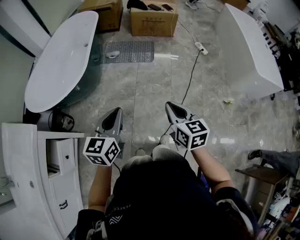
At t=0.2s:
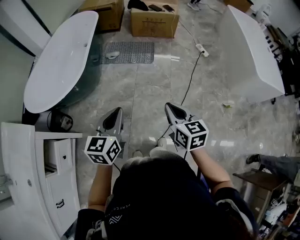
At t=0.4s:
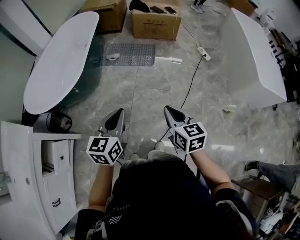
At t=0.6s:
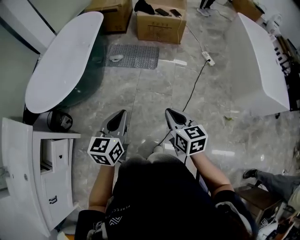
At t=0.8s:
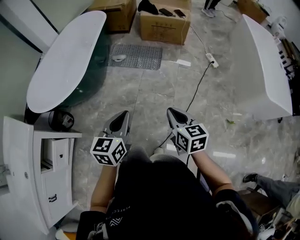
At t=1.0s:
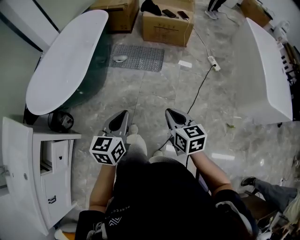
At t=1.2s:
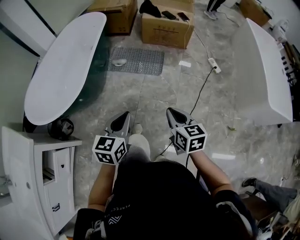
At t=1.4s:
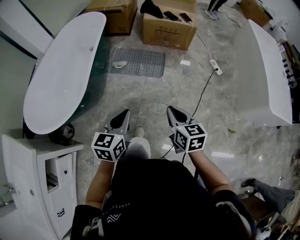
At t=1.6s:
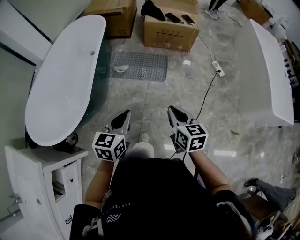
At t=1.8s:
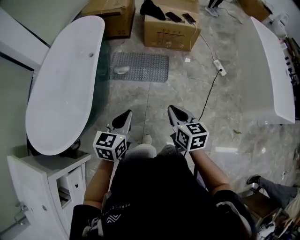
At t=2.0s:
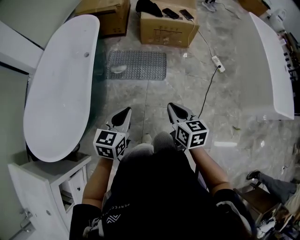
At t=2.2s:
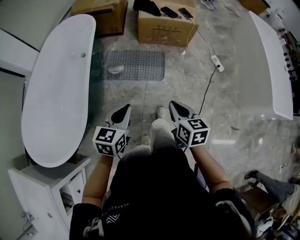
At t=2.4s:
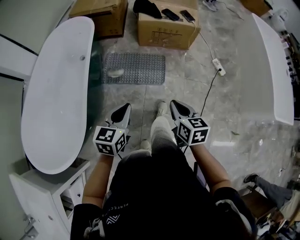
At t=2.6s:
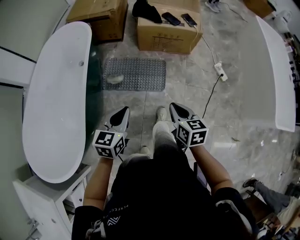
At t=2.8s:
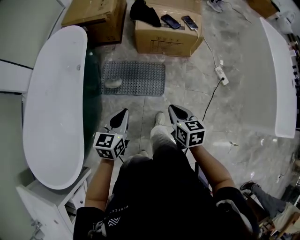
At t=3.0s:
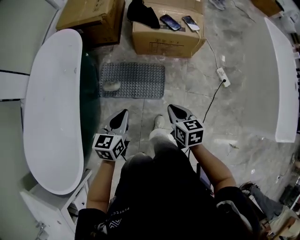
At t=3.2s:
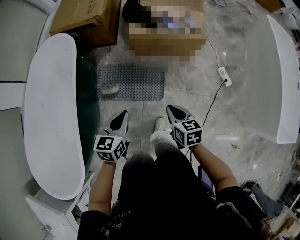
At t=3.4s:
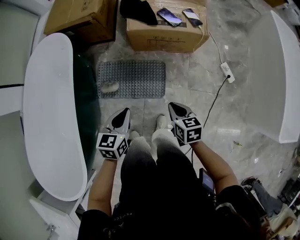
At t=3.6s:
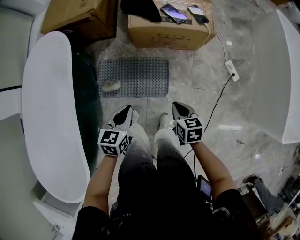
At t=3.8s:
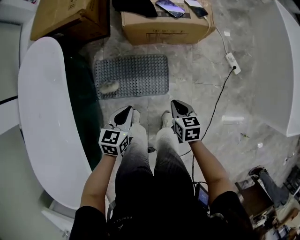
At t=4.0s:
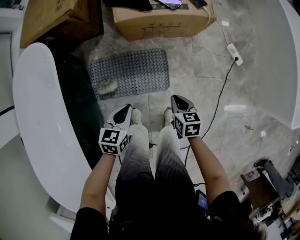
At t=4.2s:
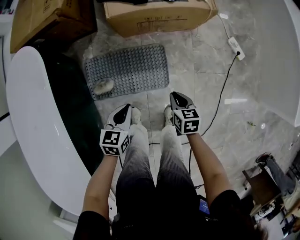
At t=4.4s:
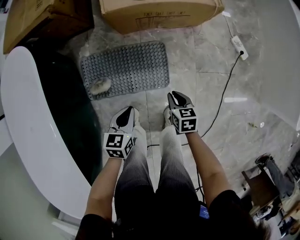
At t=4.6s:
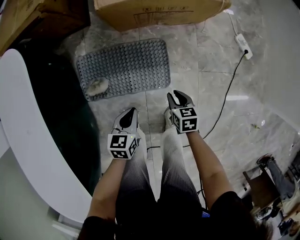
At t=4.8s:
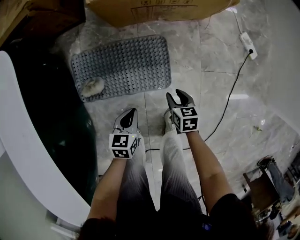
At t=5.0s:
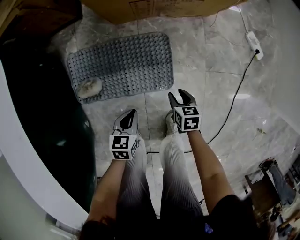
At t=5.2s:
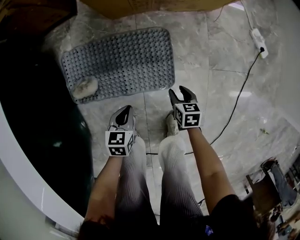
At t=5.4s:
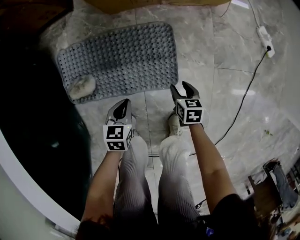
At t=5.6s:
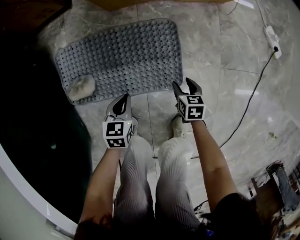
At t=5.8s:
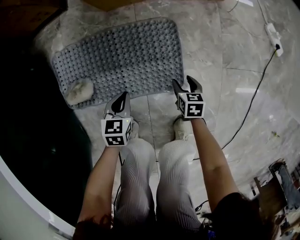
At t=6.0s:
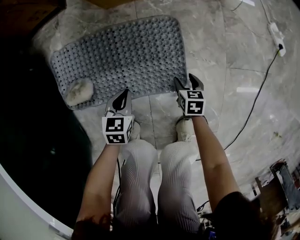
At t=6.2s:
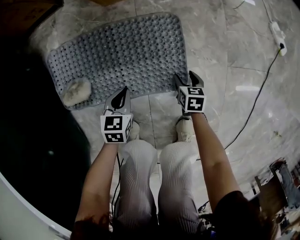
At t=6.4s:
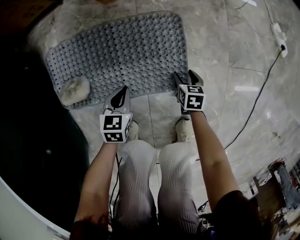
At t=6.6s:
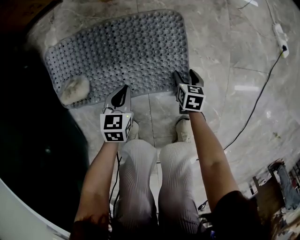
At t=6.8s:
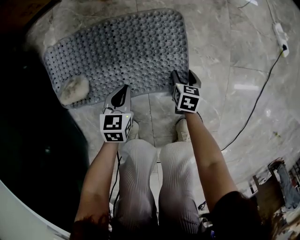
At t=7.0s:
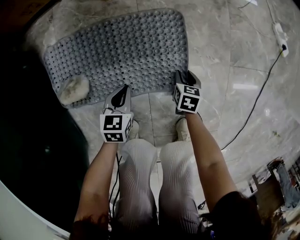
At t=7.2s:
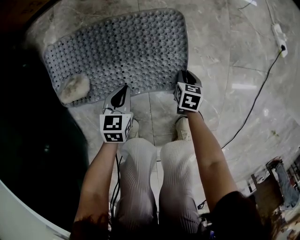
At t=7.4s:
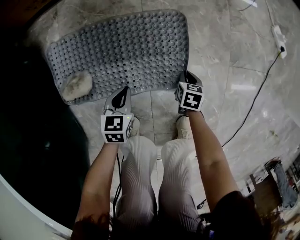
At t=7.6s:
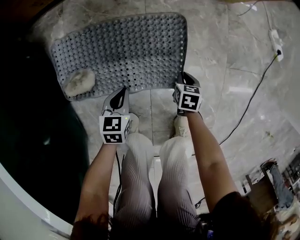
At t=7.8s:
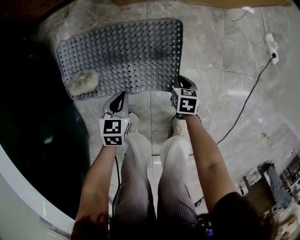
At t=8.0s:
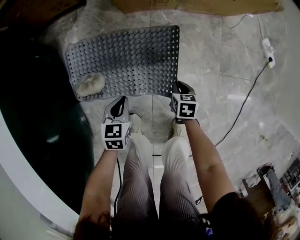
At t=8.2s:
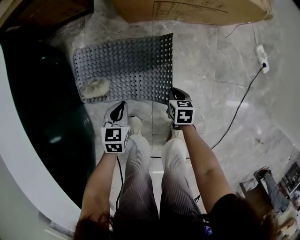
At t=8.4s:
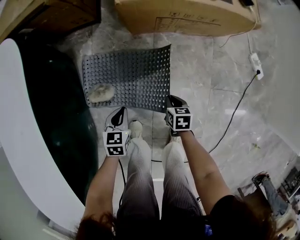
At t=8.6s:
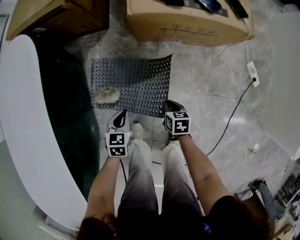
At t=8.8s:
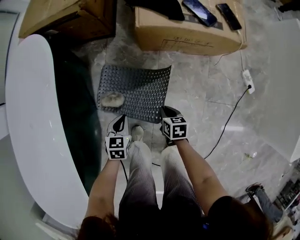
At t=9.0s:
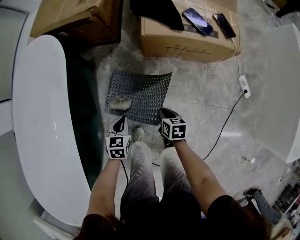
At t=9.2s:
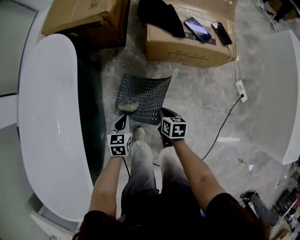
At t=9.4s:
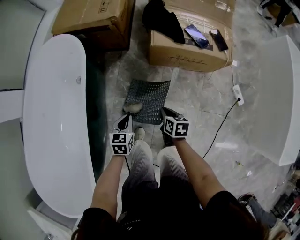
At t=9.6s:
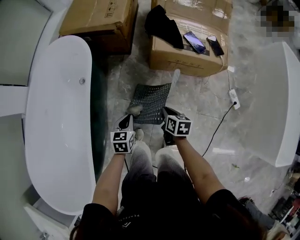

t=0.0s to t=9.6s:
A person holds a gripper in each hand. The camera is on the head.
t=0.0s to t=1.6s: Both grippers travel together forward, about 30 cm.
t=1.6s to t=3.2s: Both grippers are carried forward, roughly 40 cm.
t=3.2s to t=4.8s: The two grippers go some 40 cm downward. The left gripper changes its angle by approximately 20 degrees. The right gripper opens its fingers.
t=4.8s to t=6.4s: The two grippers go roughly 25 cm downward. The right gripper opens.
t=6.4s to t=8.0s: The left gripper goes about 10 cm upward, while the right gripper travels upward and to the left by about 15 cm, and closes its fingers.
t=8.0s to t=9.6s: Both grippers travel together upward, roughly 40 cm. The right gripper turns by about 20 degrees.

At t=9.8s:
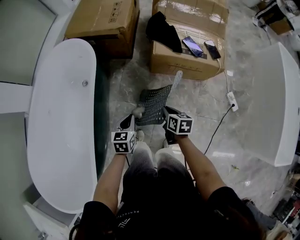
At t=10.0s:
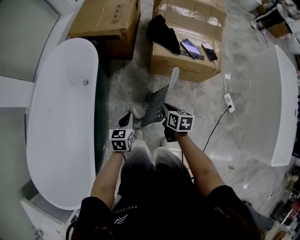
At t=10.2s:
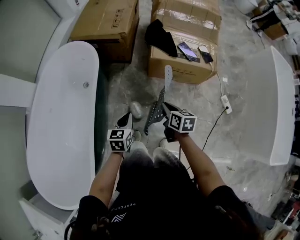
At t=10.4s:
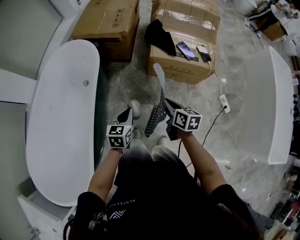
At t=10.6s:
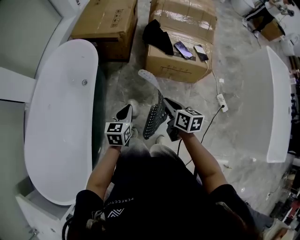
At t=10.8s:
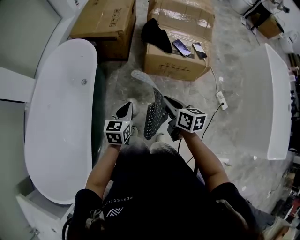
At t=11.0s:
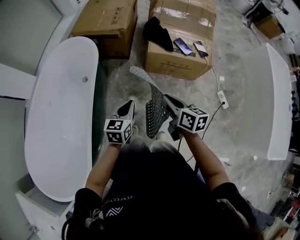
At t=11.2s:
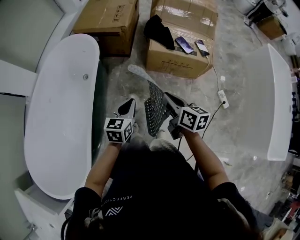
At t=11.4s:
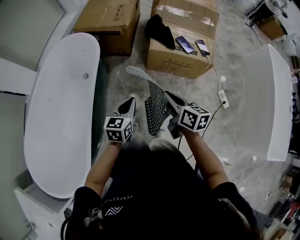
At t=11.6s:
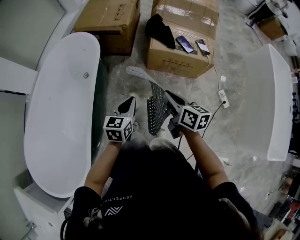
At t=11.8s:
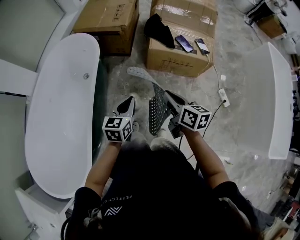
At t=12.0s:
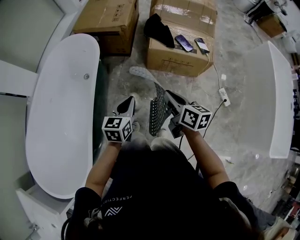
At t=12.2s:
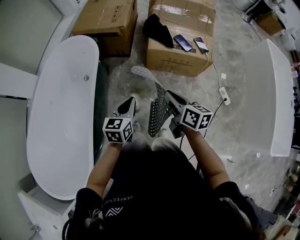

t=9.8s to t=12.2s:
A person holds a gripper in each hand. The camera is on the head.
t=9.8s to t=11.0s: The two grippers go roughly 20 cm upward. The right gripper turns by roughly 20 degrees.
t=11.0s to t=12.2s: There are only small adjustments of the grippers.

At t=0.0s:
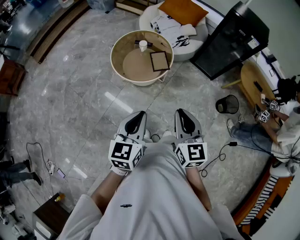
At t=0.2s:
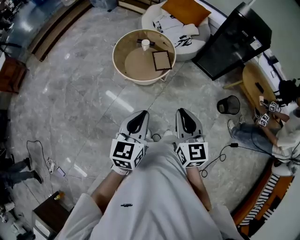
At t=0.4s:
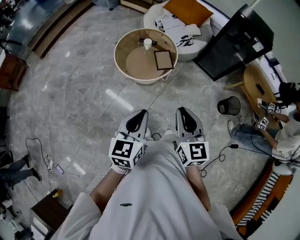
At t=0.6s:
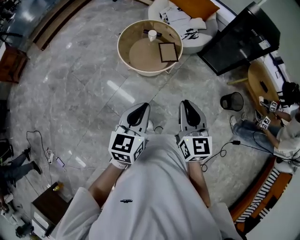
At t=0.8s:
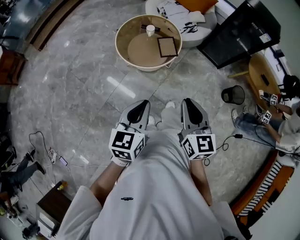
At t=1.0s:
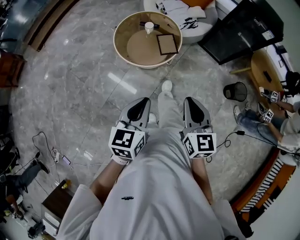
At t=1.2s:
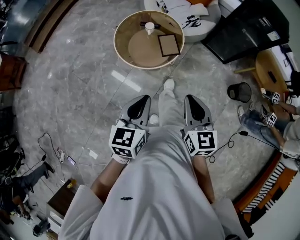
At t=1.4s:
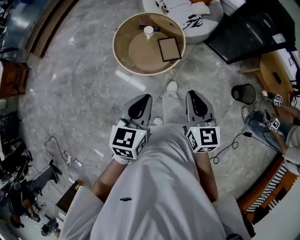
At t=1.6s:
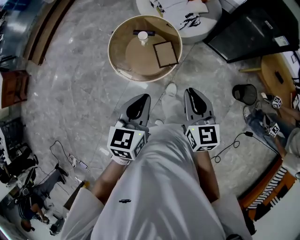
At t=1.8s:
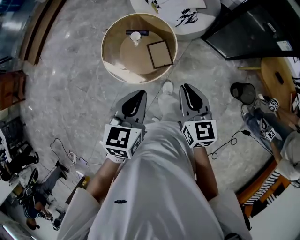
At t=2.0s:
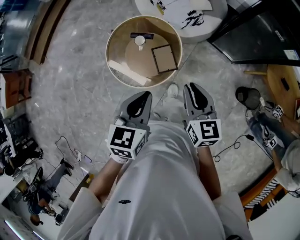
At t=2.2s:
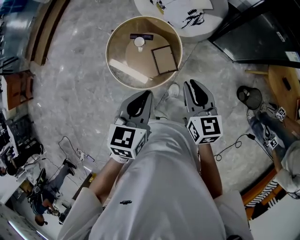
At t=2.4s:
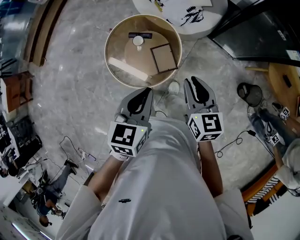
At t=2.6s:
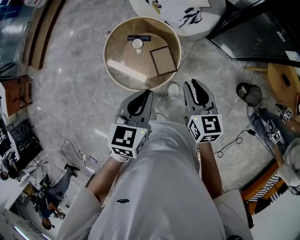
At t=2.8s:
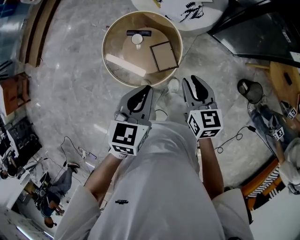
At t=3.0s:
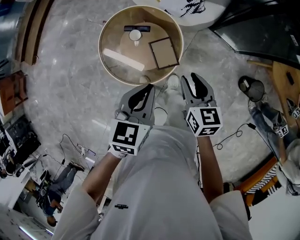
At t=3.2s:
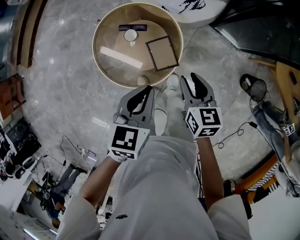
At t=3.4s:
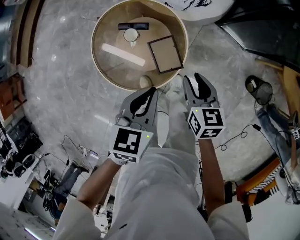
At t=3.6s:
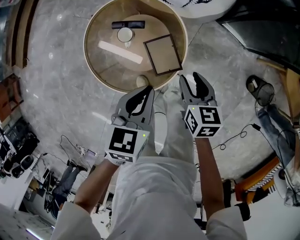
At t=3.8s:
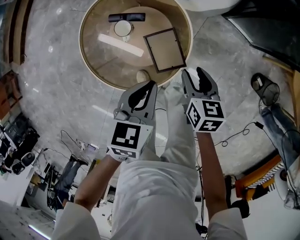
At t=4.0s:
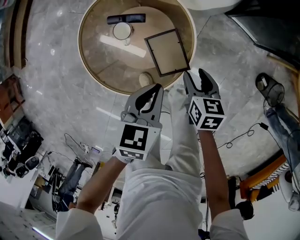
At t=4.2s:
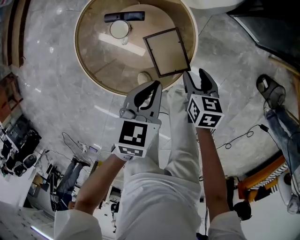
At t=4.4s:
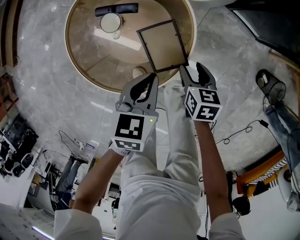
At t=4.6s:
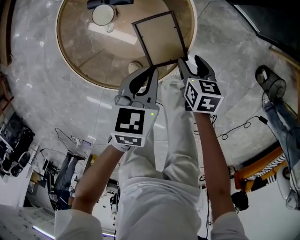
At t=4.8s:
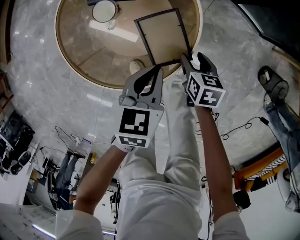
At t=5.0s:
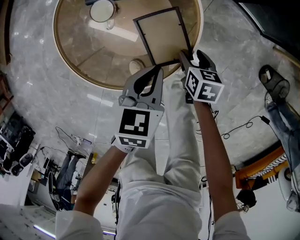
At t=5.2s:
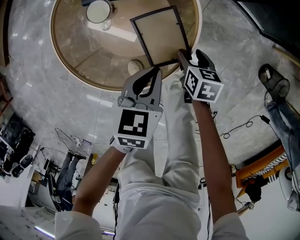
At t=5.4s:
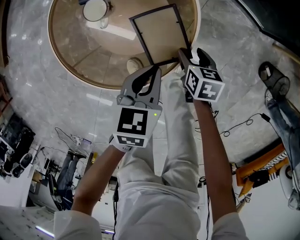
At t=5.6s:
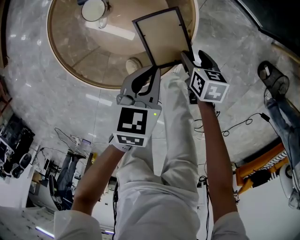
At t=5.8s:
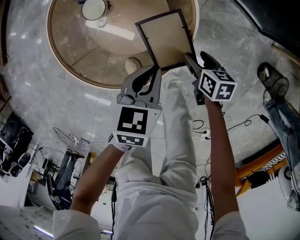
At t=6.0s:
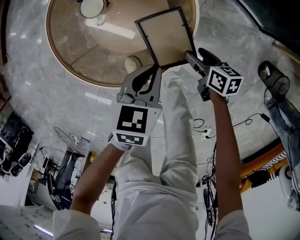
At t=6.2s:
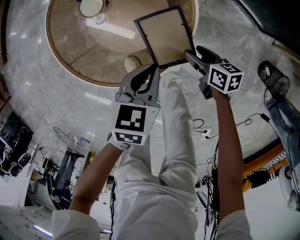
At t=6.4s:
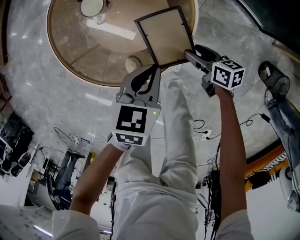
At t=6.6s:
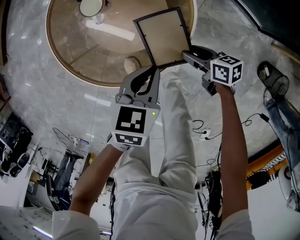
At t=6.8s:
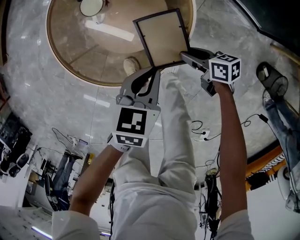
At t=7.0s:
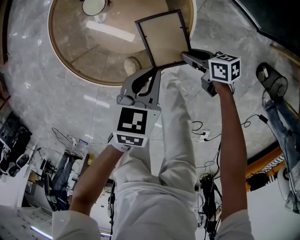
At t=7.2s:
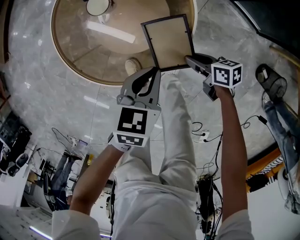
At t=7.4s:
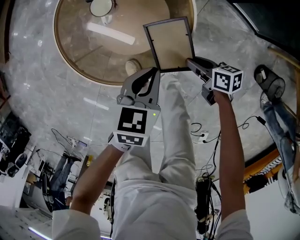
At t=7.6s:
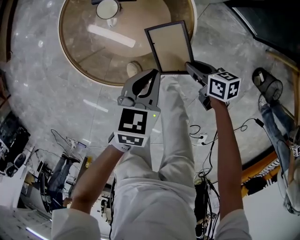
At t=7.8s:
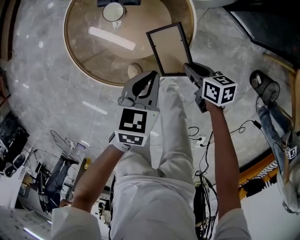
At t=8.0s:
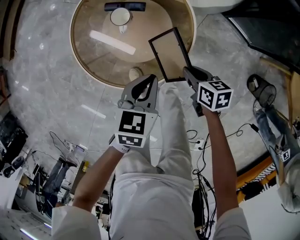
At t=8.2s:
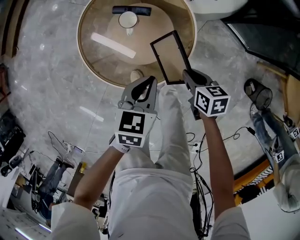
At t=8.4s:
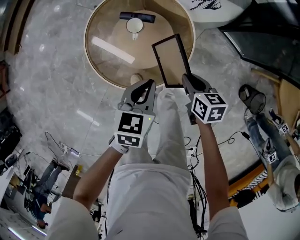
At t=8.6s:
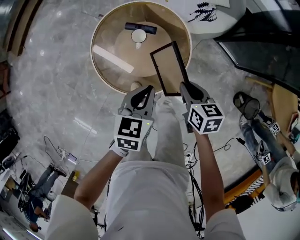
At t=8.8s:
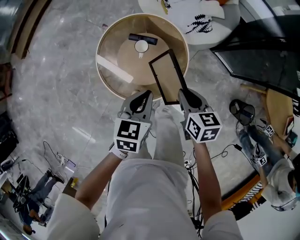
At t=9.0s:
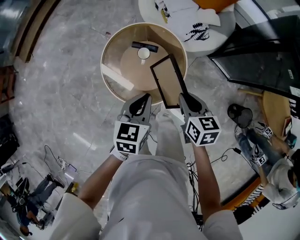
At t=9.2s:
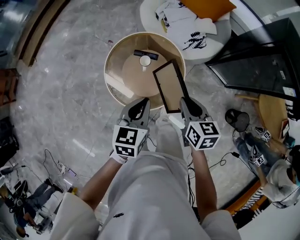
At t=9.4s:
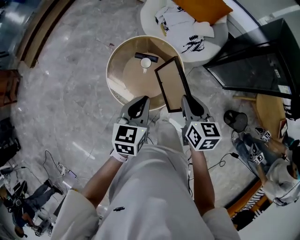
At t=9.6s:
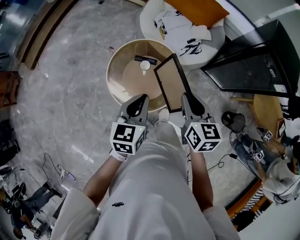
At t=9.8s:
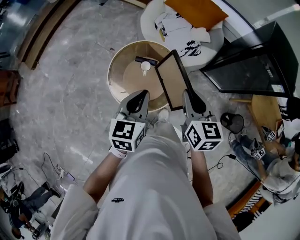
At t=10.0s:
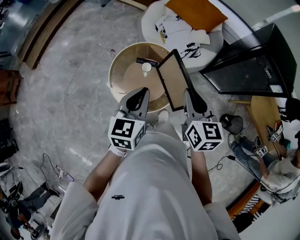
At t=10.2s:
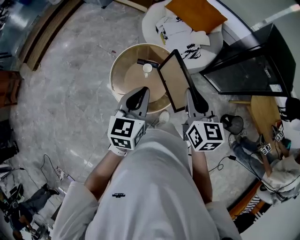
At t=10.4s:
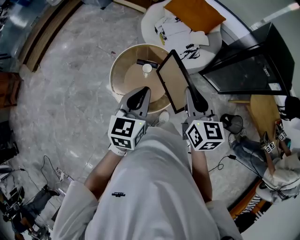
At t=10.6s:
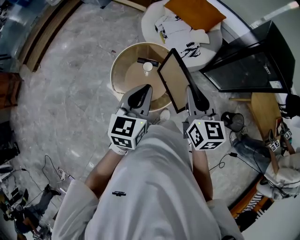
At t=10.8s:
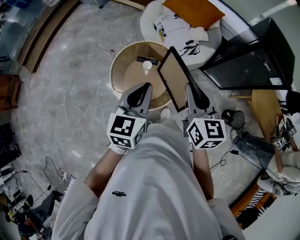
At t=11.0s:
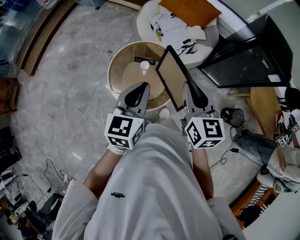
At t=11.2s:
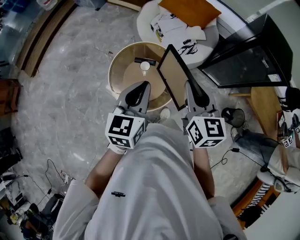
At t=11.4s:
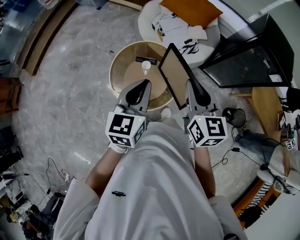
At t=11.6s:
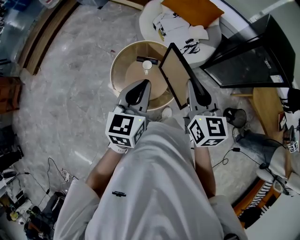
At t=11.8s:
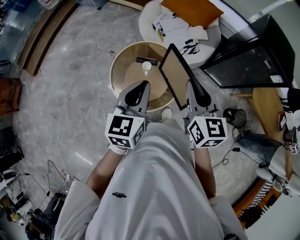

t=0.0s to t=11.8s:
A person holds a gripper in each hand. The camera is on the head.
t=0.0s to t=1.4s: The grippers both shift forward by approximately 15 cm.
t=1.4s to t=3.0s: The right gripper goes about 30 cm forward and downward, rotates roughly 20 degrees, and opens its fingers. The left gripper is displaced forward by roughly 25 cm.
t=3.0s to t=4.4s: The grippers both shift downward by some 35 cm. The right gripper turns by approximately 20 degrees, and opens its fingers.
t=4.4s to t=6.0s: Both grippers move downward, roughly 10 cm. The right gripper turns by some 20 degrees.
t=6.0s to t=7.4s: The right gripper closes.
t=7.4s to t=8.8s: The grippers both shift upward by about 30 cm. The right gripper changes its angle by approximately 30 degrees.
t=8.8s to t=10.4s: Both grippers travel together upward, some 25 cm. The right gripper turns by approximately 30 degrees.
t=10.4s to t=11.8s: The grippers stay close to where they were, moving slightly.
